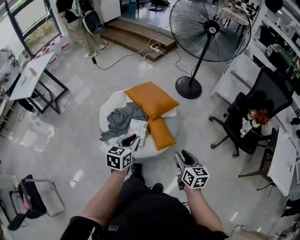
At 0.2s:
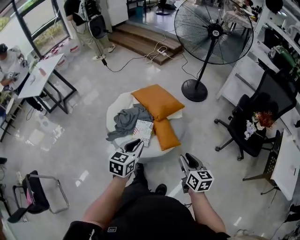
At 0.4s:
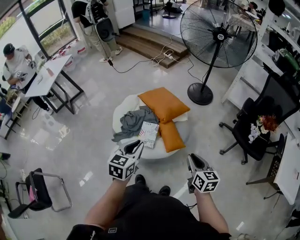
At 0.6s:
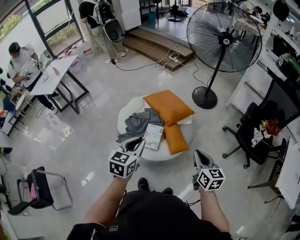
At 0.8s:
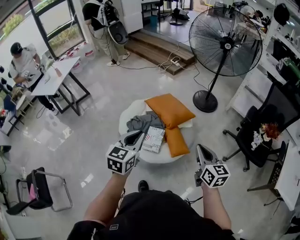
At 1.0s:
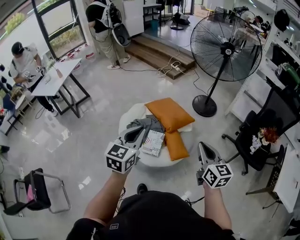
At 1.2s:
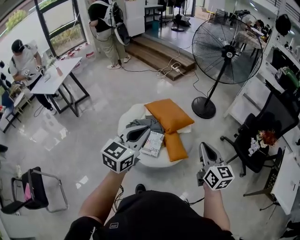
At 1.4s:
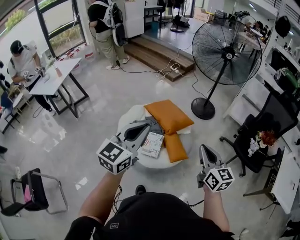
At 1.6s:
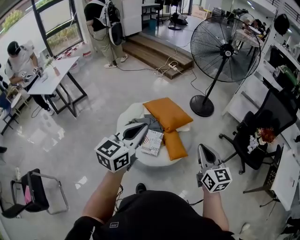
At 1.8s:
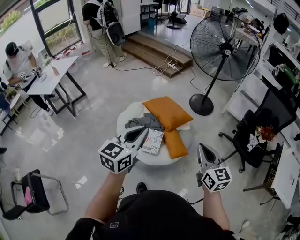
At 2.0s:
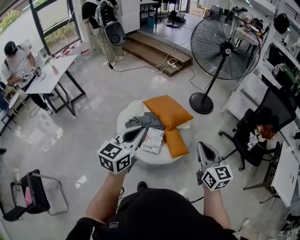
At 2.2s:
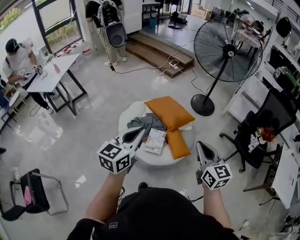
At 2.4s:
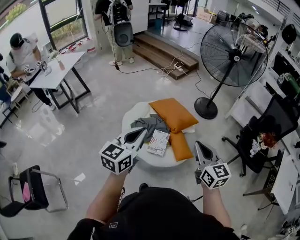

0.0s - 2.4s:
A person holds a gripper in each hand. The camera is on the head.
0.0s - 1.2s: The grippers both shift upward by roughly 20 cm. The left gripper turns by about 30 degrees. The right gripper changes its angle by about 20 degrees, and closes up.
1.2s - 2.4s: Both grippers move to the left, approximately 10 cm.

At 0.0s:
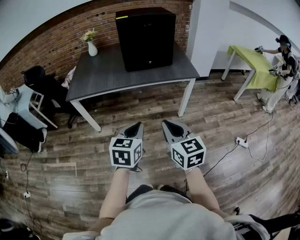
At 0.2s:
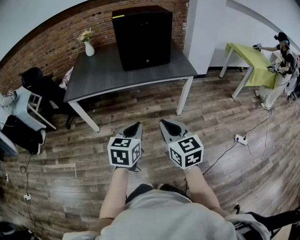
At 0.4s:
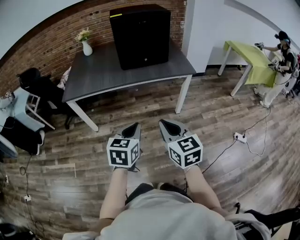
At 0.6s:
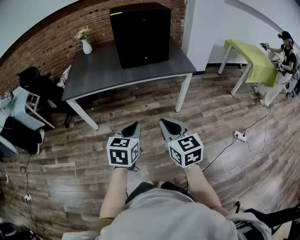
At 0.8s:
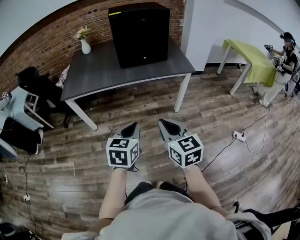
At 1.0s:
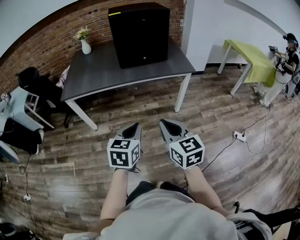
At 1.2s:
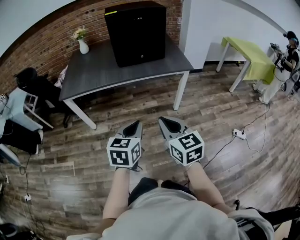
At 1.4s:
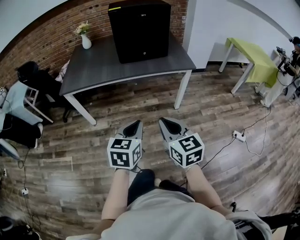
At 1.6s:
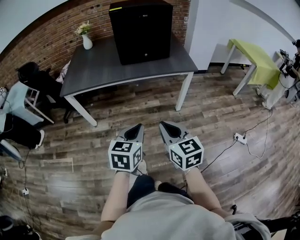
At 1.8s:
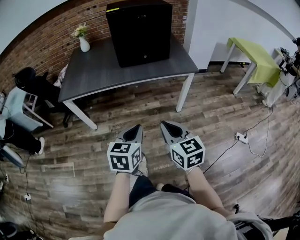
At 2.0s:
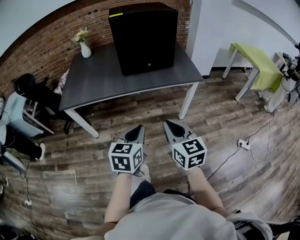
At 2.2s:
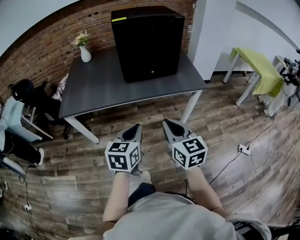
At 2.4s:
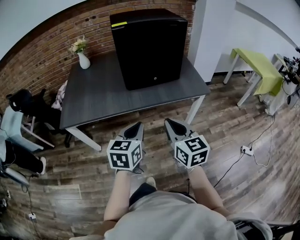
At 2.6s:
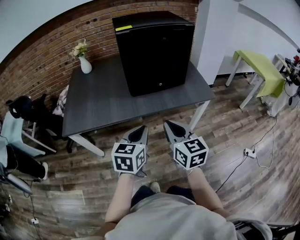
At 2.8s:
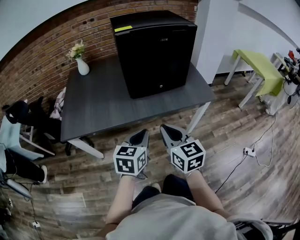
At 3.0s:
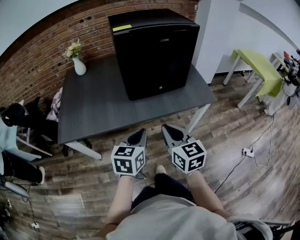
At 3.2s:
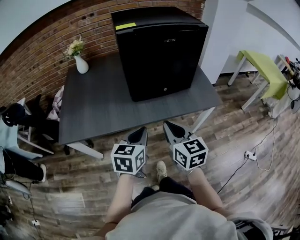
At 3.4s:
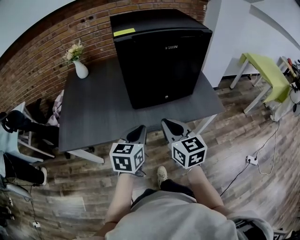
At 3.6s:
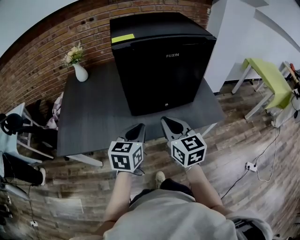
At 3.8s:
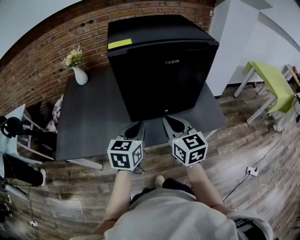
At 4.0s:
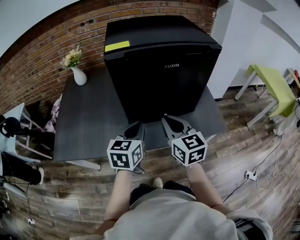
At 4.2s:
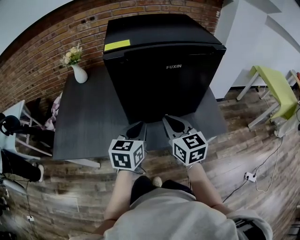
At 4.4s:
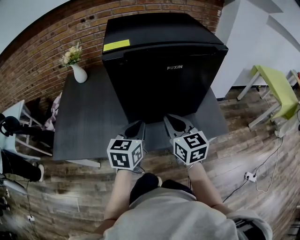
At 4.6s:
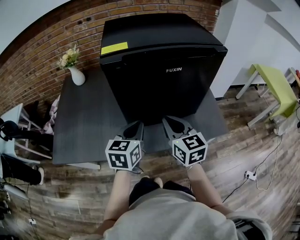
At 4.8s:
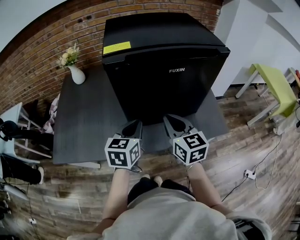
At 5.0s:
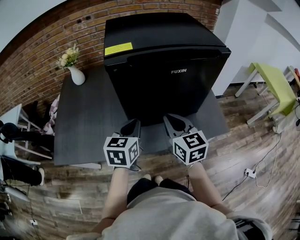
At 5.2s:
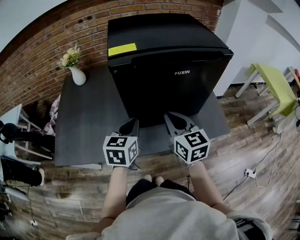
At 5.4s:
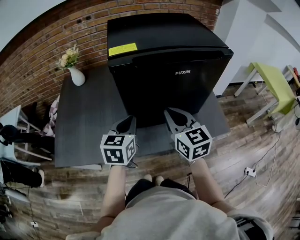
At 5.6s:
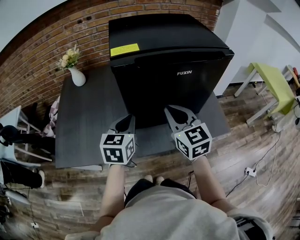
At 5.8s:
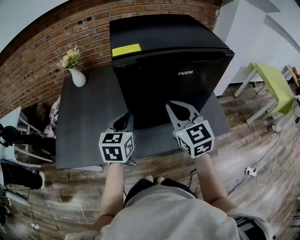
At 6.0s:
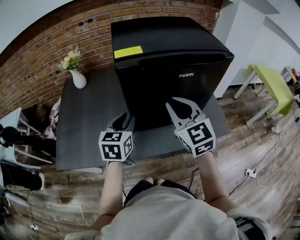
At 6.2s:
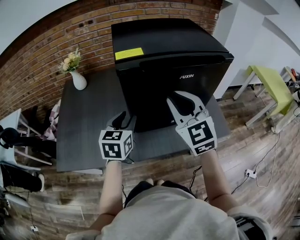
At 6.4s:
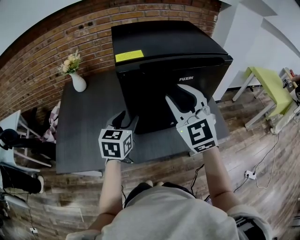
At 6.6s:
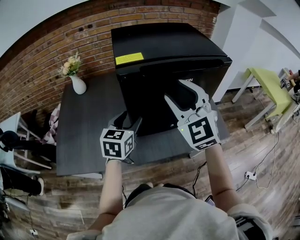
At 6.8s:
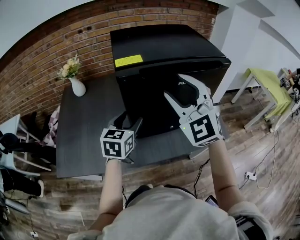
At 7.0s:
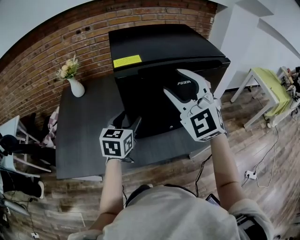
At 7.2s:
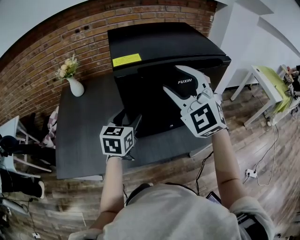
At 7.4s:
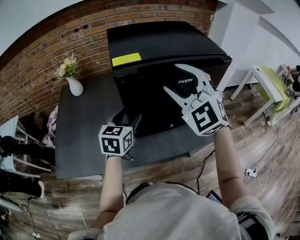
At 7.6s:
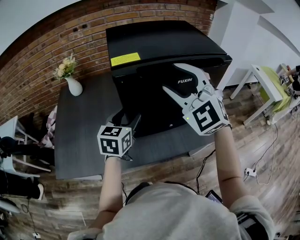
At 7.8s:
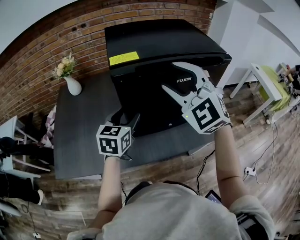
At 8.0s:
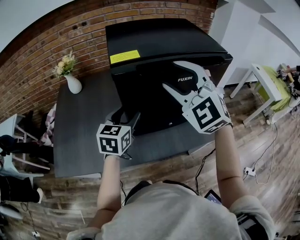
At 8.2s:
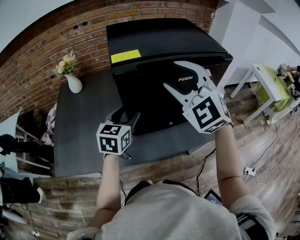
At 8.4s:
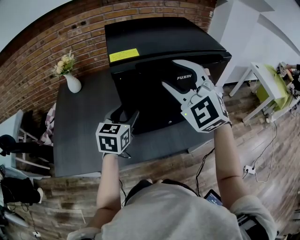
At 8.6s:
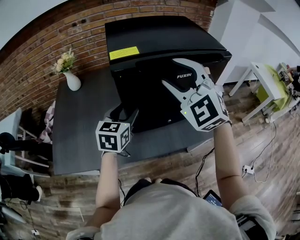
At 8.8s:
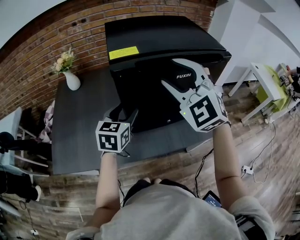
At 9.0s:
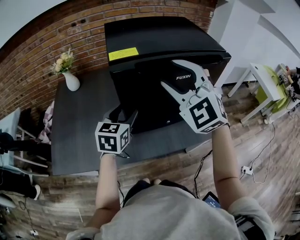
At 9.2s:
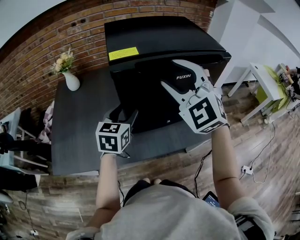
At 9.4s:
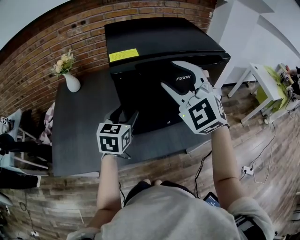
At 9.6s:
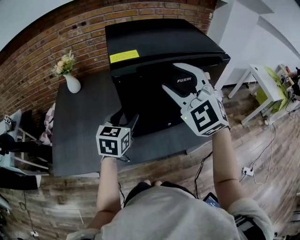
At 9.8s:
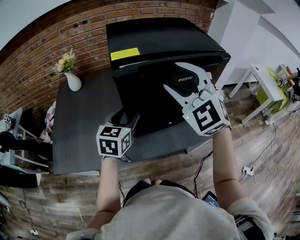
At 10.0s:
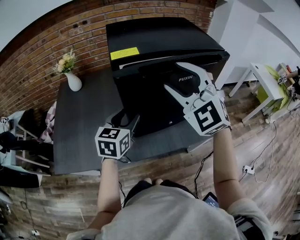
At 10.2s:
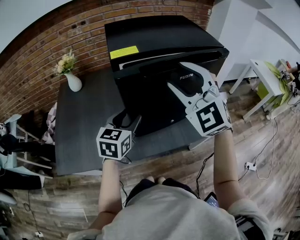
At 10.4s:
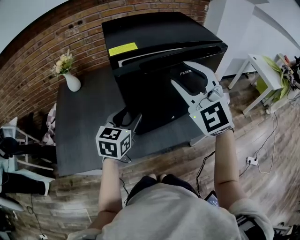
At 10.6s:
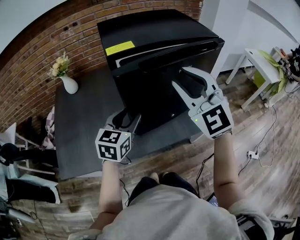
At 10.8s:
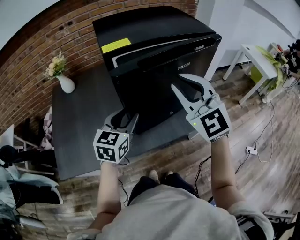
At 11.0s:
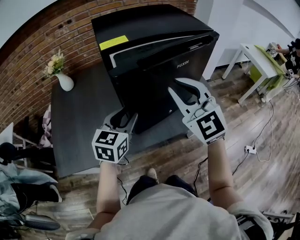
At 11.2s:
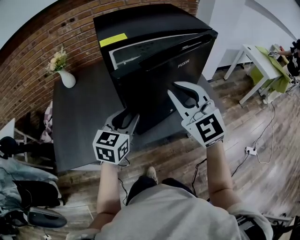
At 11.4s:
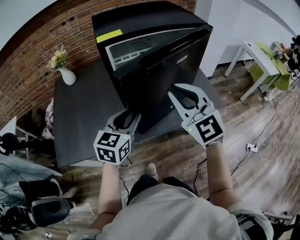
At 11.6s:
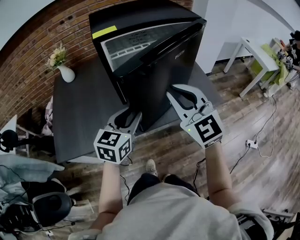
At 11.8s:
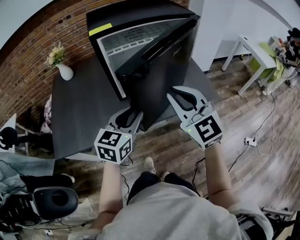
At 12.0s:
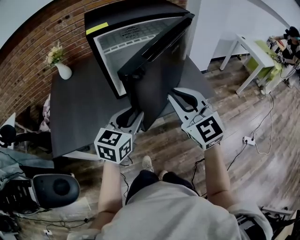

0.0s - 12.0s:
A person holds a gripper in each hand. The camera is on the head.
0.0s - 1.6s: There are only small adjustments of the grippers.
1.6s - 3.0s: Both grippers move forward, approximately 35 cm.
3.0s - 4.4s: The grippers both shift forward by about 25 cm.
4.4s - 6.0s: The left gripper moves to the left and forward, roughly 10 cm; the right gripper is displaced upward by approximately 10 cm, and changes its angle by approximately 20 degrees.
6.0s - 7.6s: The left gripper opens its fingers. Meanwhile the right gripper is displaced upward by some 10 cm, swivels some 40 degrees, and opens its fingers.
7.6s - 9.0s: Neither gripper changes place.
9.0s - 10.4s: The grippers make only small movements.
10.4s - 12.0s: The left gripper goes roughly 20 cm backward and to the right, and closes; the right gripper is displaced backward, downward and to the right by roughly 20 cm, swivels some 30 degrees, and closes its fingers.

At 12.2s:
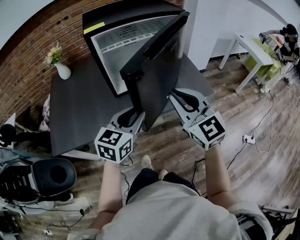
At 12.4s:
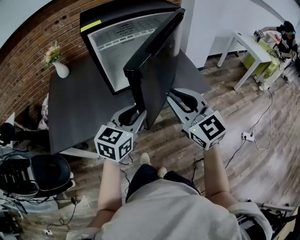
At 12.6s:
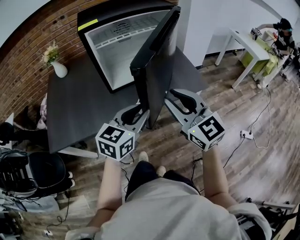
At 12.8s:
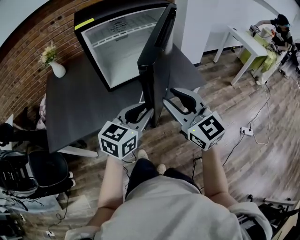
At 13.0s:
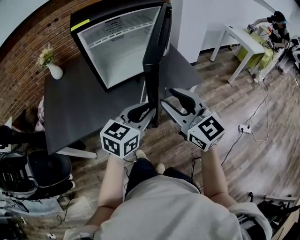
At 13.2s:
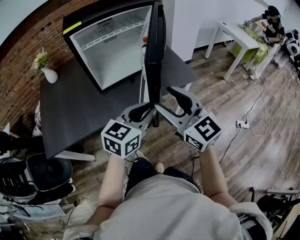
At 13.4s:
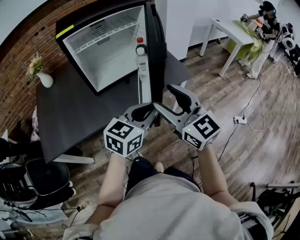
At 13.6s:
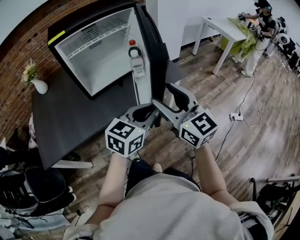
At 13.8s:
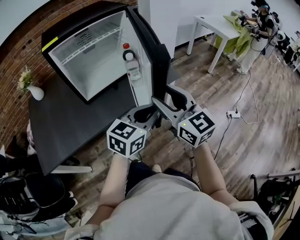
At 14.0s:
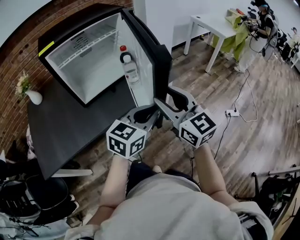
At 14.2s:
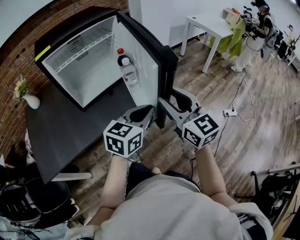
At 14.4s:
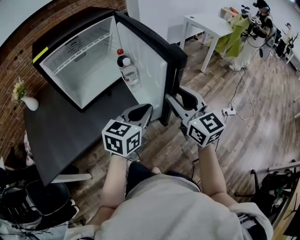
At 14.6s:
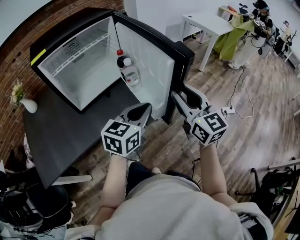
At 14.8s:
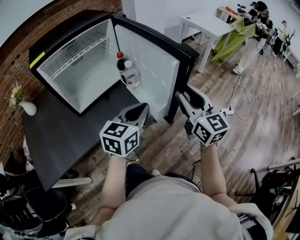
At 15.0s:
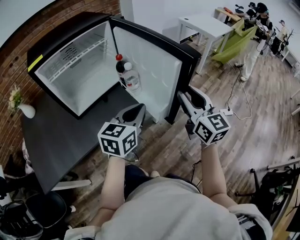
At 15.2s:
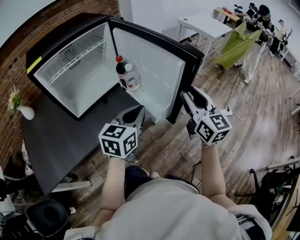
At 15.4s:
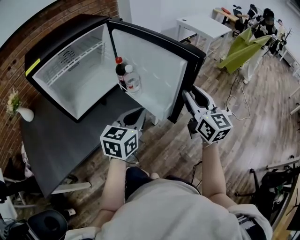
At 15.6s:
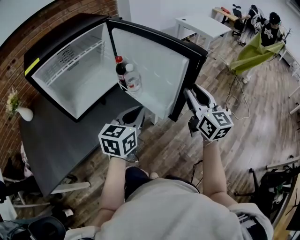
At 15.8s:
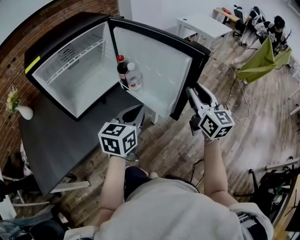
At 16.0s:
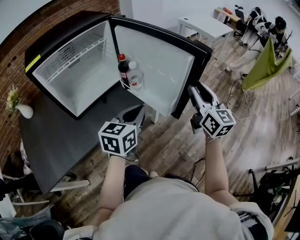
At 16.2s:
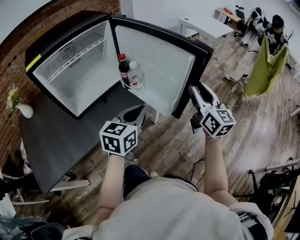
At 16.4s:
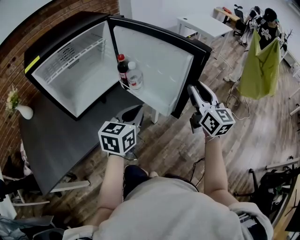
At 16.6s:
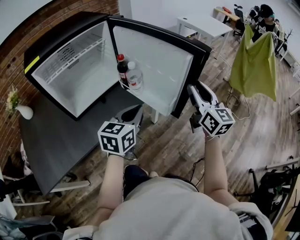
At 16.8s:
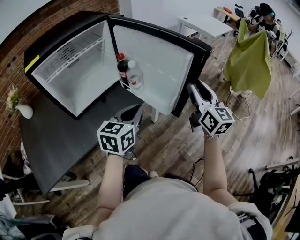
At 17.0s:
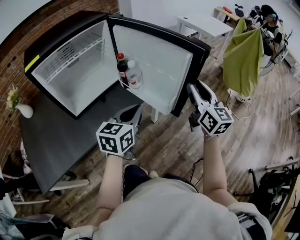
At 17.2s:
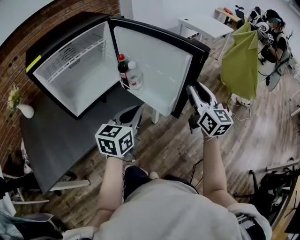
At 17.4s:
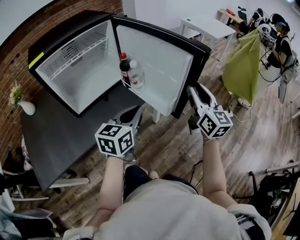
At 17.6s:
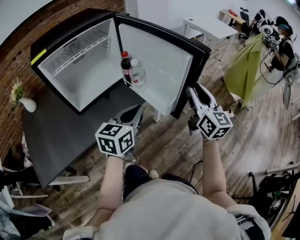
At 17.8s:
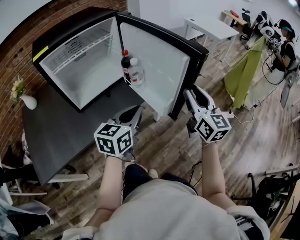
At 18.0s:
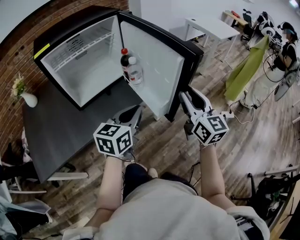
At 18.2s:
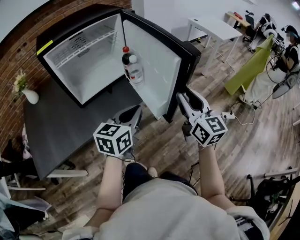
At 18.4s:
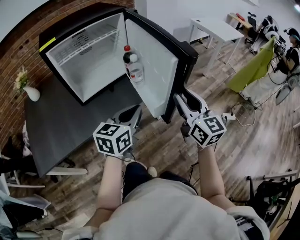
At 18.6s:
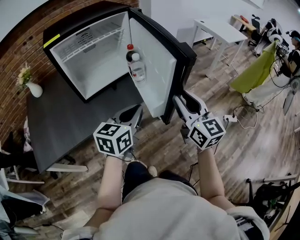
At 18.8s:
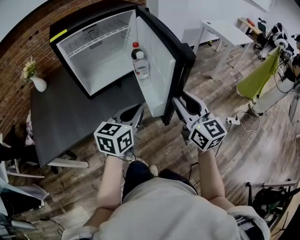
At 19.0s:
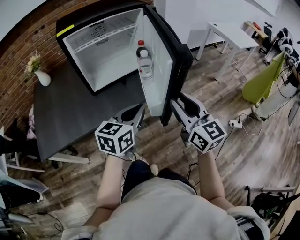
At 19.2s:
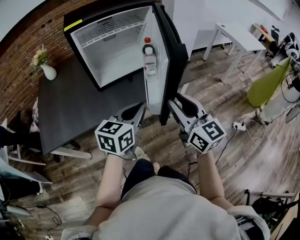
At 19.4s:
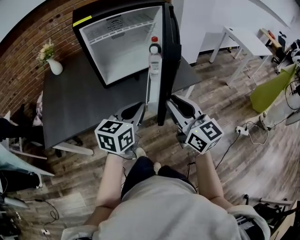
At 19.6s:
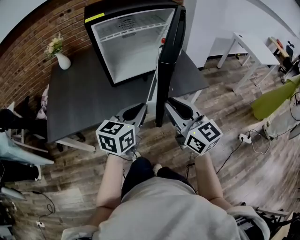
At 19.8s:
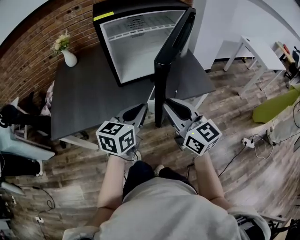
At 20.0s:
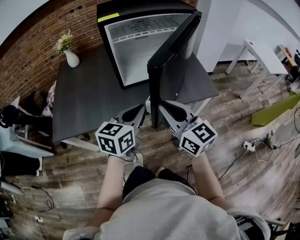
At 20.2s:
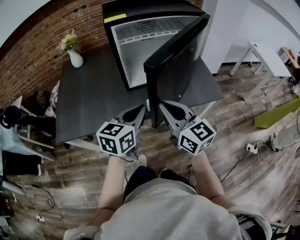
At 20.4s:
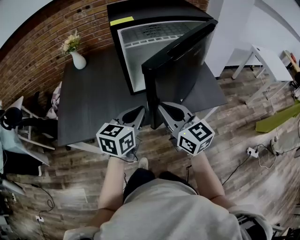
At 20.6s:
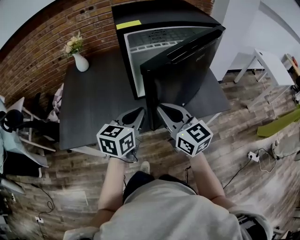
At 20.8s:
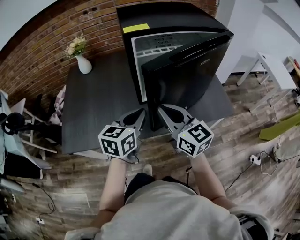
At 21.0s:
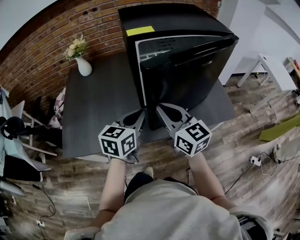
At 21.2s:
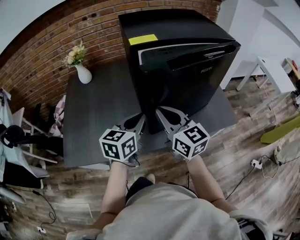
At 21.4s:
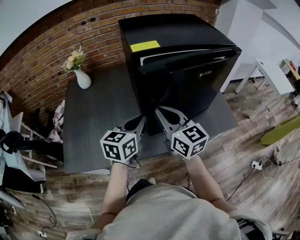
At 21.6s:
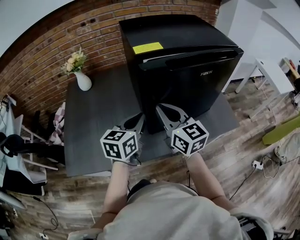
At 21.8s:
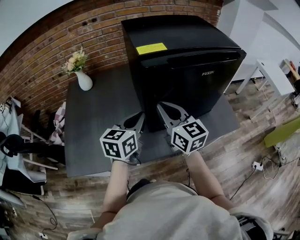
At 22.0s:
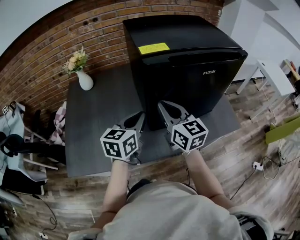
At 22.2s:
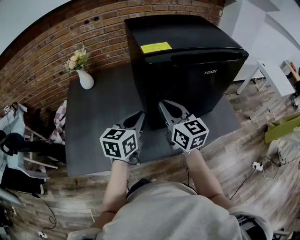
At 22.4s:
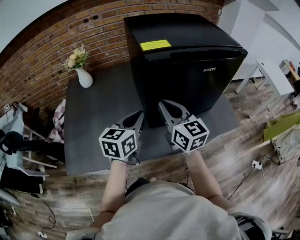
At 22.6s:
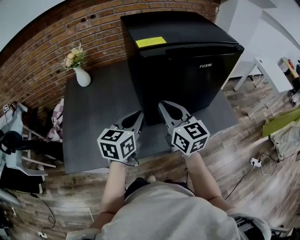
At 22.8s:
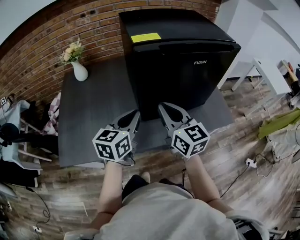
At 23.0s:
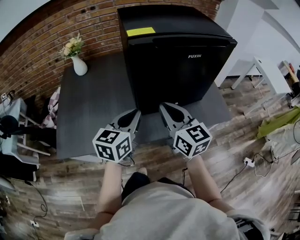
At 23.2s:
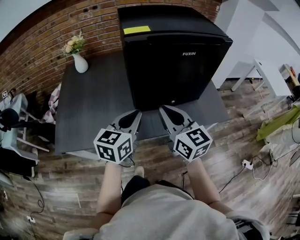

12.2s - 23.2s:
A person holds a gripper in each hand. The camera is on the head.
12.2s - 13.8s: The right gripper goes approximately 10 cm to the right and backward, turns by roughly 20 degrees, and opens; the left gripper moves to the right, approximately 20 cm, and turns by approximately 30 degrees.
13.8s - 15.4s: The left gripper travels forward by roughly 5 cm. Meanwhile the right gripper is displaced to the right and forward by some 15 cm, and changes its angle by roughly 30 degrees.
15.4s - 17.0s: The grippers move only a little.
17.0s - 18.4s: The left gripper moves backward, roughly 5 cm, while the right gripper goes approximately 10 cm backward and to the left.
18.4s - 20.0s: The right gripper ends up some 25 cm from where it was, changes its angle by roughly 40 degrees, and closes up, while the left gripper moves roughly 15 cm, and swivels about 20 degrees.
20.0s - 21.6s: The two grippers go about 25 cm forward and to the left.
21.6s - 23.2s: The left gripper is displaced backward by some 10 cm. Meanwhile the right gripper moves backward and to the right, roughly 10 cm.
